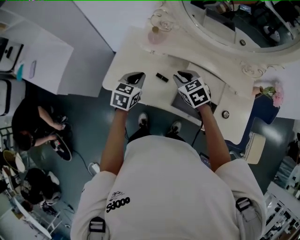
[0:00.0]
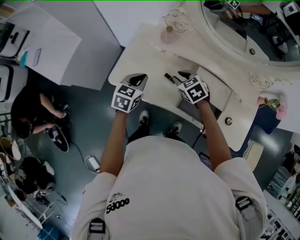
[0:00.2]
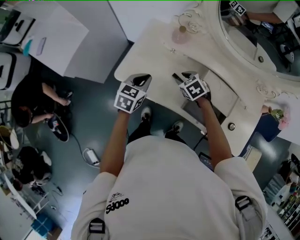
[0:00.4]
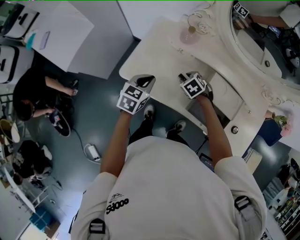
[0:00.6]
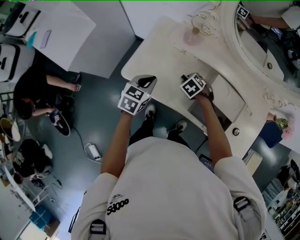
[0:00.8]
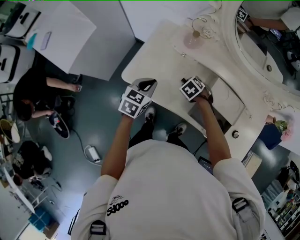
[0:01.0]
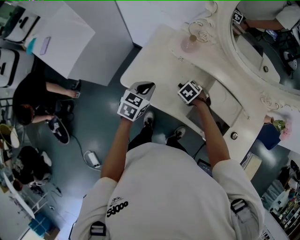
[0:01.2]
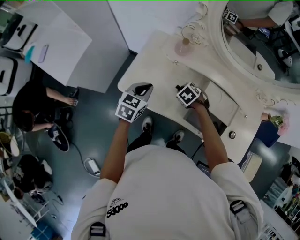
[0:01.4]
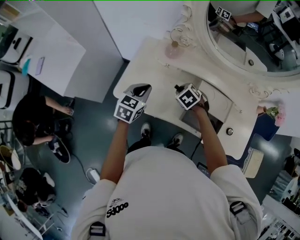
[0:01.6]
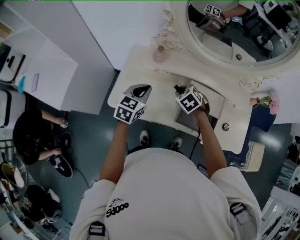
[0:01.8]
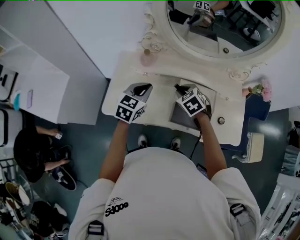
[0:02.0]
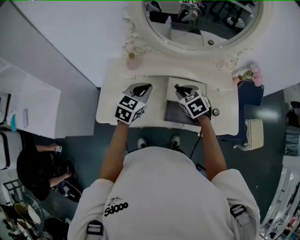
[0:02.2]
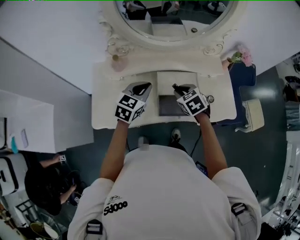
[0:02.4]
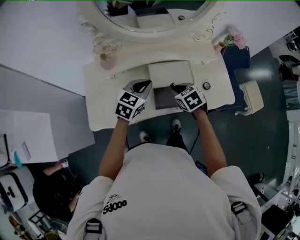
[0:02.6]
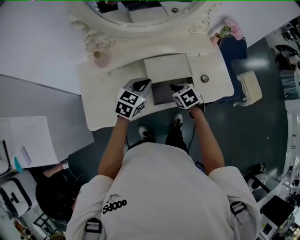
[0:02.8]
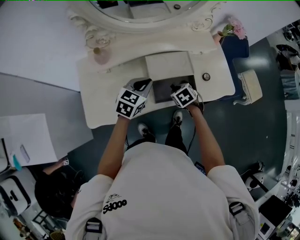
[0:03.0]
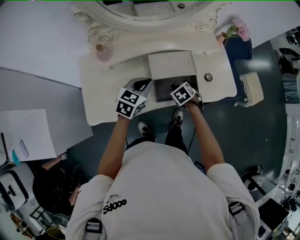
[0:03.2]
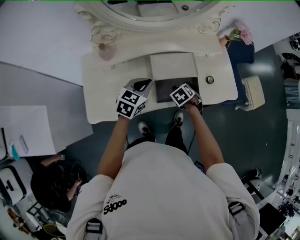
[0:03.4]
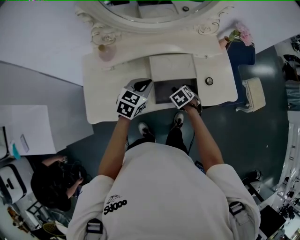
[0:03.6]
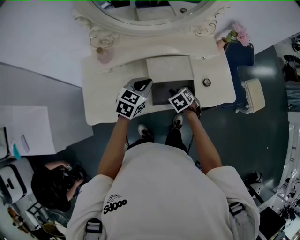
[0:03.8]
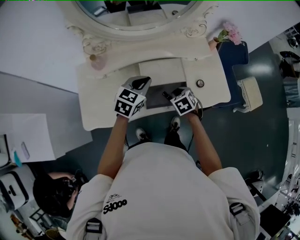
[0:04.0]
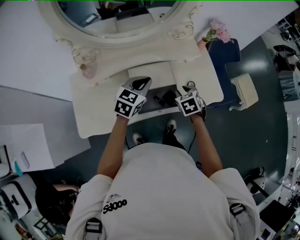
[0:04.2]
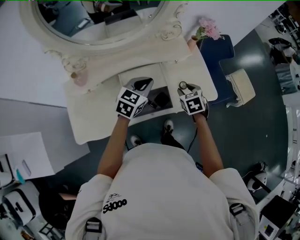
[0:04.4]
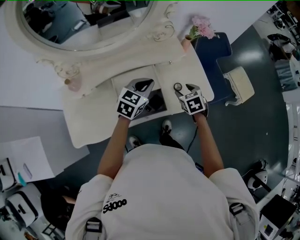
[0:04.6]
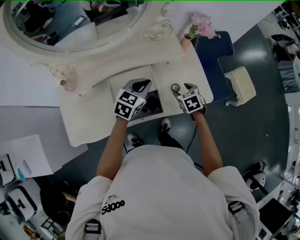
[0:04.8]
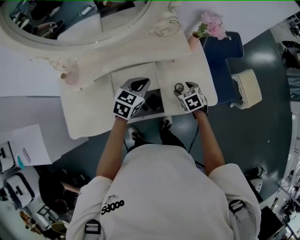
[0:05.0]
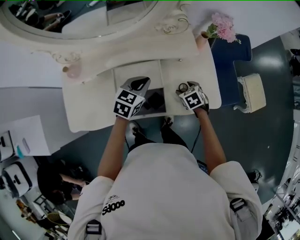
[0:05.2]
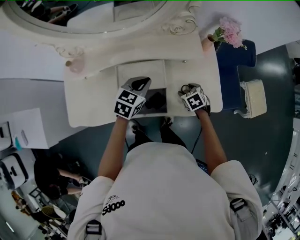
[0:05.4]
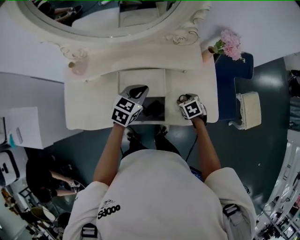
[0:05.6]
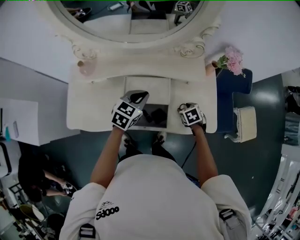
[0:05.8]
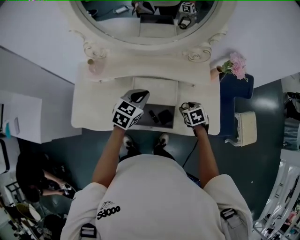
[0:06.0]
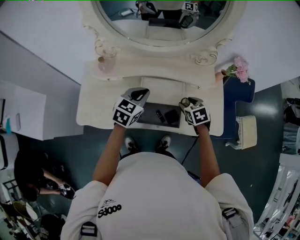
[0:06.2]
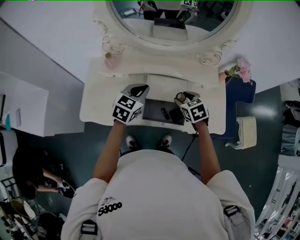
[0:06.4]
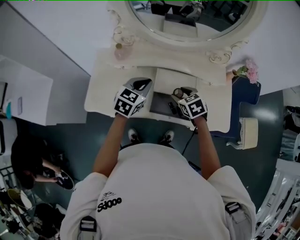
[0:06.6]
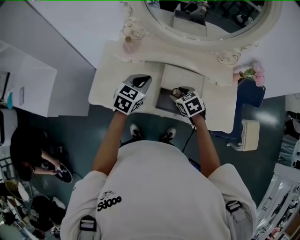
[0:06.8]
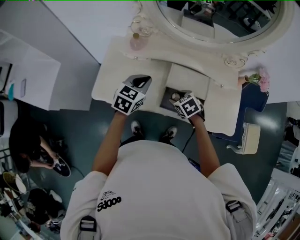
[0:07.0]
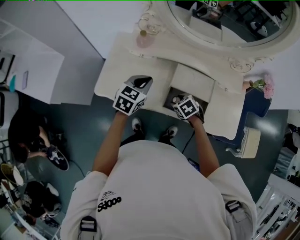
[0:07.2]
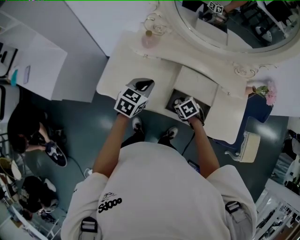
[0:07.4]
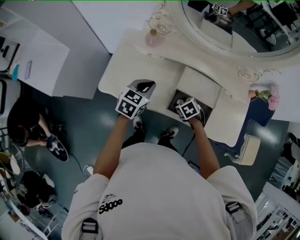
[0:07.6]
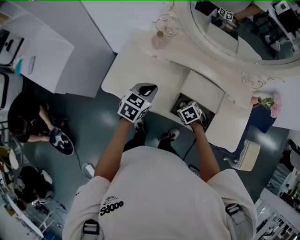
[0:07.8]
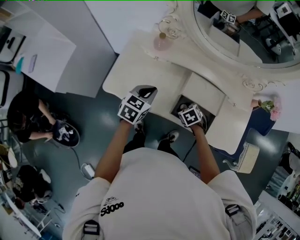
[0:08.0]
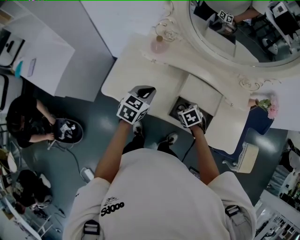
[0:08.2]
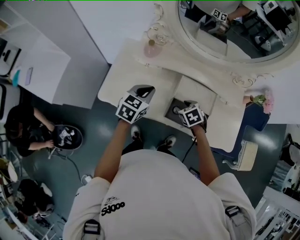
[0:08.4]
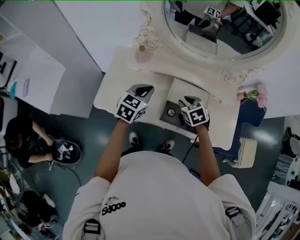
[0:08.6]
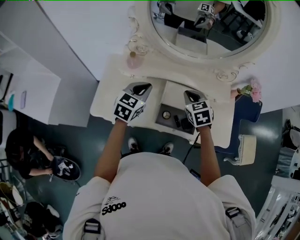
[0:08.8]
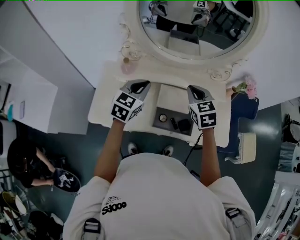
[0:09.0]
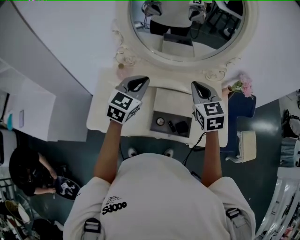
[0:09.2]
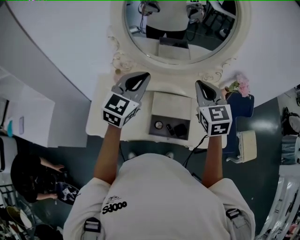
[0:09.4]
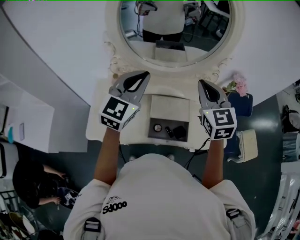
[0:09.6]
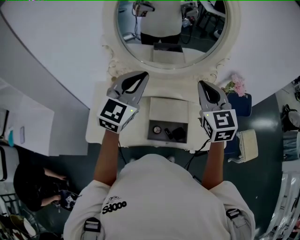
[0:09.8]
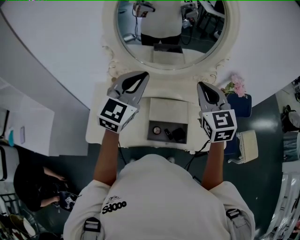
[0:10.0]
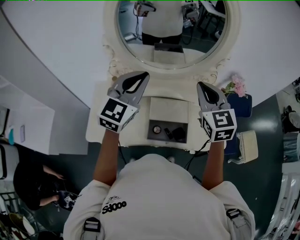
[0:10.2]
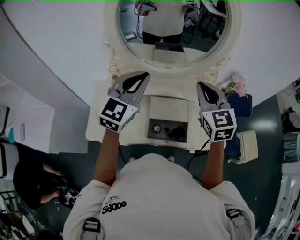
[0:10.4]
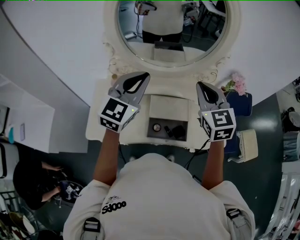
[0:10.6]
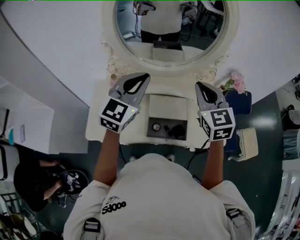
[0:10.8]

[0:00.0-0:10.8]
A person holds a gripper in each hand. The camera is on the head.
0:00.0 to 0:01.6: The right gripper heads downward, covering roughly 10 cm, and changes its angle by some 20 degrees.
0:01.6 to 0:03.0: The left gripper ends up about 20 cm from where it was, and rotates approximately 40 degrees. The right gripper goes upward and returns, approximately 10 cm each way, and rotates around the line of its fingers by about 50 degrees, clockwise from behind.
0:03.0 to 0:04.6: Both grippers move to the right and forward, roughly 20 cm. The right gripper rotates approximately 20 degrees, and opens its fingers.
0:04.6 to 0:06.2: The right gripper travels downward and back again, about 10 cm each way, and changes its angle by about 20 degrees, while the left gripper ends up approximately 15 cm from where it was, and turns by some 20 degrees.
0:06.2 to 0:07.8: The left gripper heads to the left, covering roughly 15 cm; the right gripper shifts some 25 cm to the left and downward, and changes its angle by some 30 degrees.
0:07.8 to 0:09.2: The left gripper shifts about 20 cm upward, to the right and forward, and rotates approximately 30 degrees. The right gripper shifts about 35 cm upward, tips its fingers upward by about 50 degrees, and closes its fingers.
0:09.2 to 0:10.8: The grippers both shift upward by approximately 10 cm.

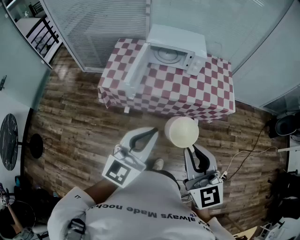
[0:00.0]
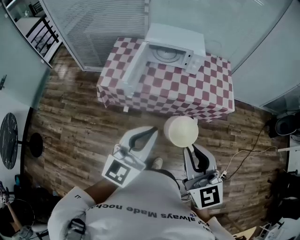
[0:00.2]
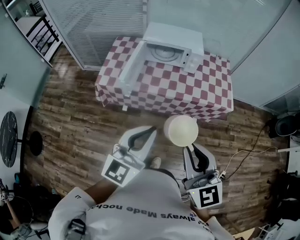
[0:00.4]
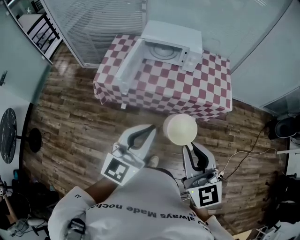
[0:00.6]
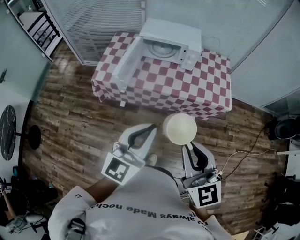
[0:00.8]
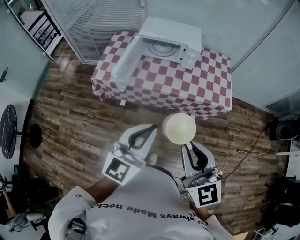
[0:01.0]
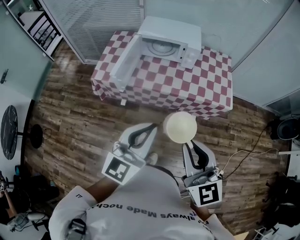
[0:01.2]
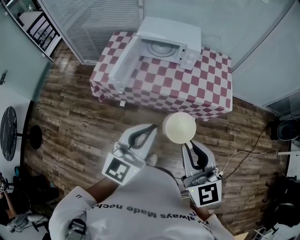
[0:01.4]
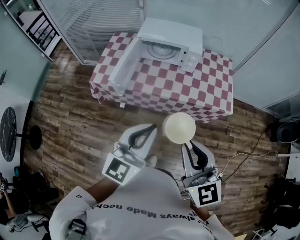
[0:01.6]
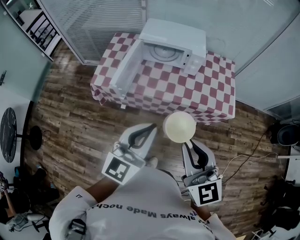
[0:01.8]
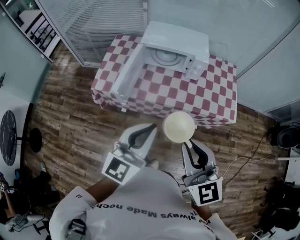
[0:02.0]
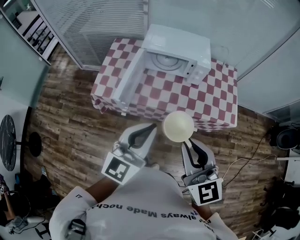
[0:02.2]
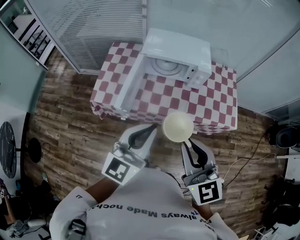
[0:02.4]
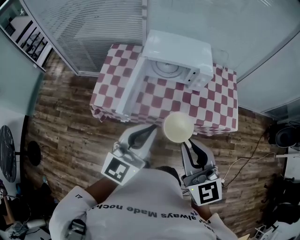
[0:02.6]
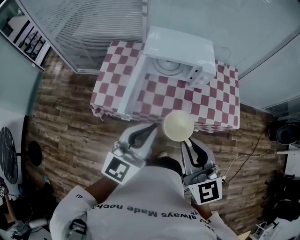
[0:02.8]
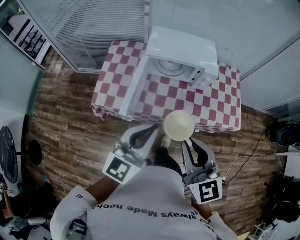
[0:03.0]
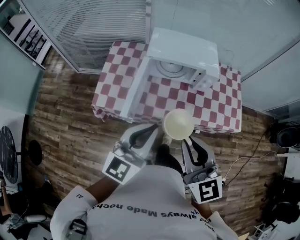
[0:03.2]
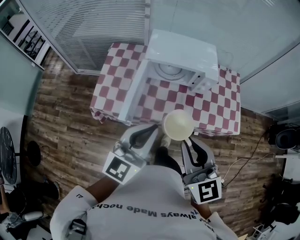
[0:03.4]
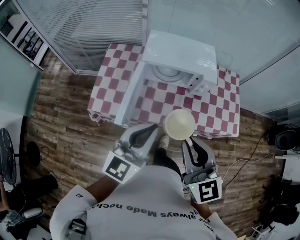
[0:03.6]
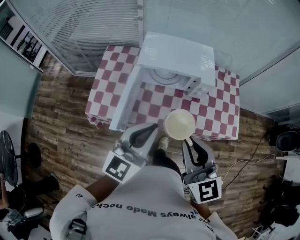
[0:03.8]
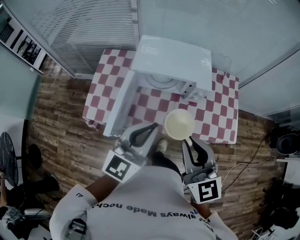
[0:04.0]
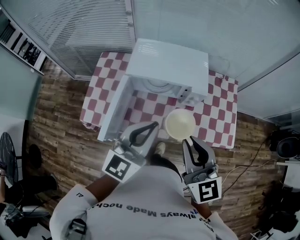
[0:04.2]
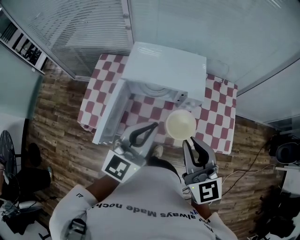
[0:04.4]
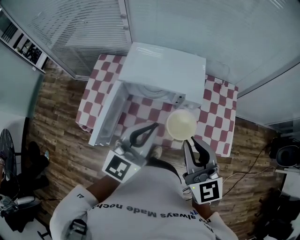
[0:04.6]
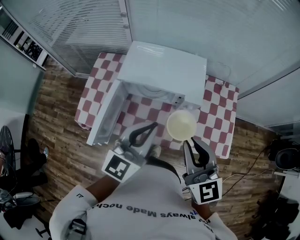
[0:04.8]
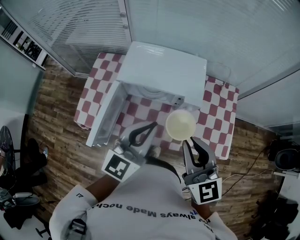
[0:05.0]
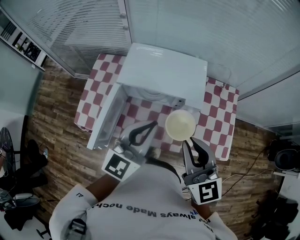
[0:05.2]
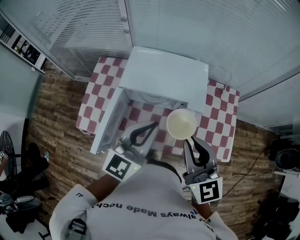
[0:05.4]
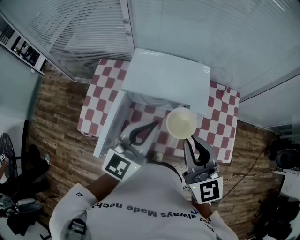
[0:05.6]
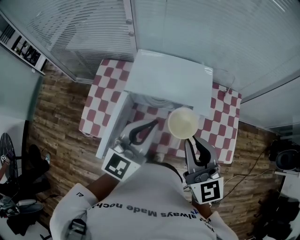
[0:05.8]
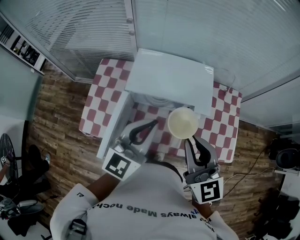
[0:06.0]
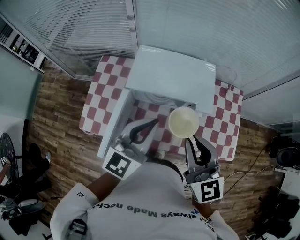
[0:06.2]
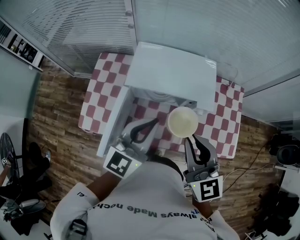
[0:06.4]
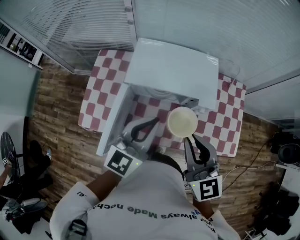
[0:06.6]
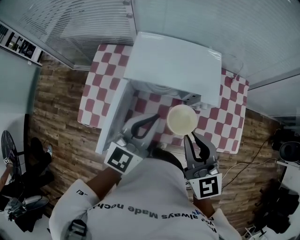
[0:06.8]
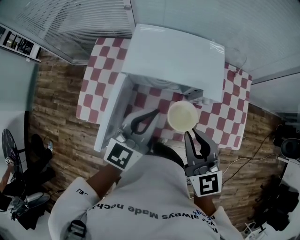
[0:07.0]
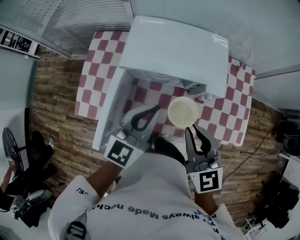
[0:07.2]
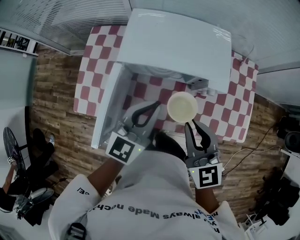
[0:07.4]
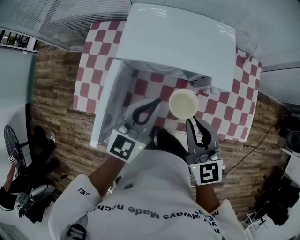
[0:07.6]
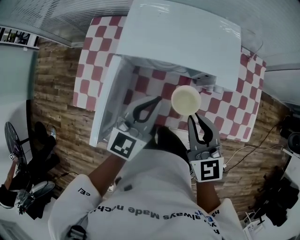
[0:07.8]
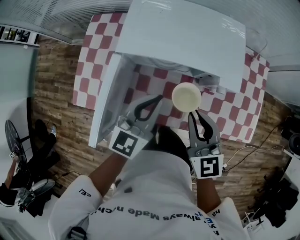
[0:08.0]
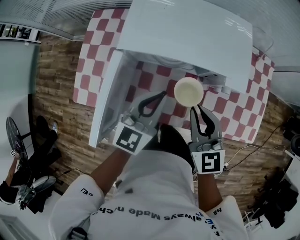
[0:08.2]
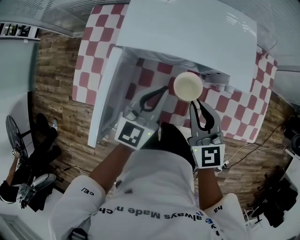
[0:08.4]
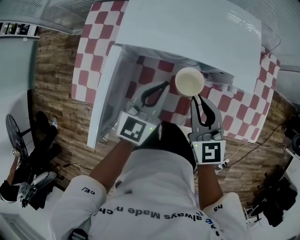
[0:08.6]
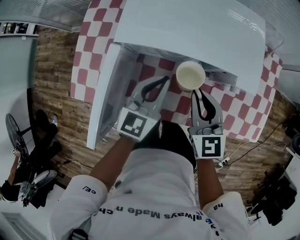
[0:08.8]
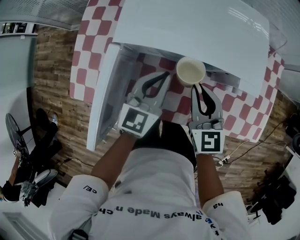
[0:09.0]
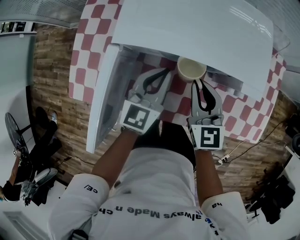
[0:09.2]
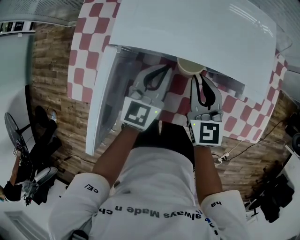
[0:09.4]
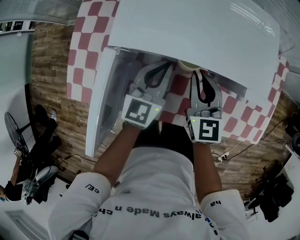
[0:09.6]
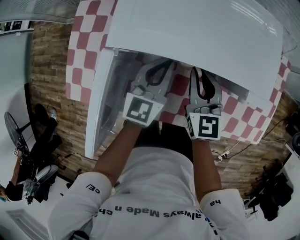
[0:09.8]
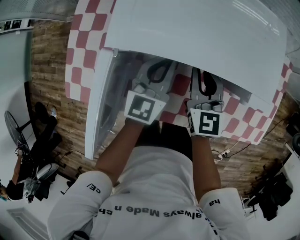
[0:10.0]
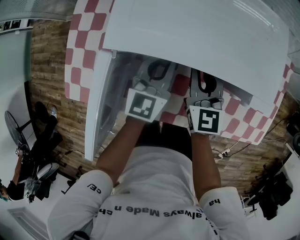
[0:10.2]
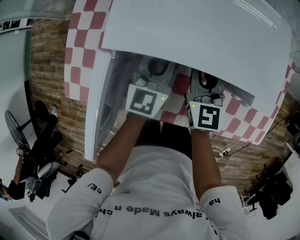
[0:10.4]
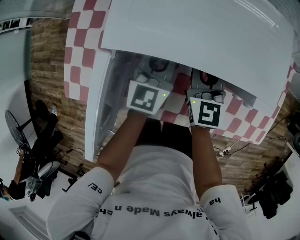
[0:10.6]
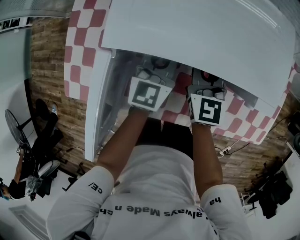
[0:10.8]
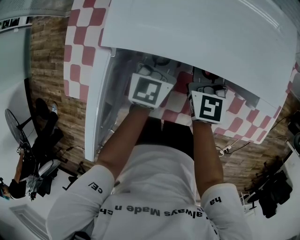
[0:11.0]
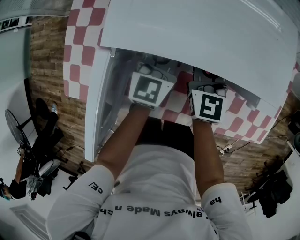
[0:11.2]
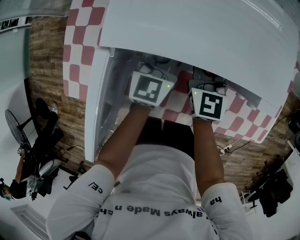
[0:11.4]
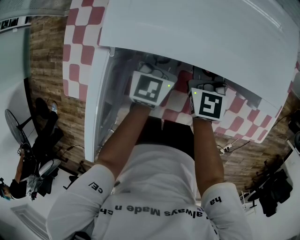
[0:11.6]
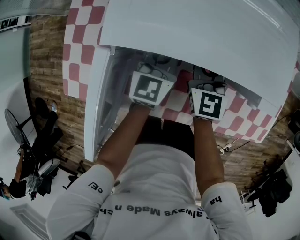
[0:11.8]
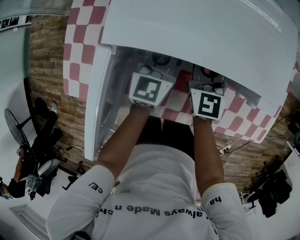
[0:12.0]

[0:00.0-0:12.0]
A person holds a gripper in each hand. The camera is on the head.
0:00.0 to 0:01.6: The two grippers go about 10 cm to the right and forward.
0:01.6 to 0:03.0: The grippers both shift forward and to the left by approximately 25 cm.
0:03.0 to 0:04.4: Both grippers move forward and to the right, about 25 cm.
0:04.4 to 0:06.0: The grippers both shift forward by approximately 10 cm.
0:06.0 to 0:07.6: The grippers both shift downward by some 15 cm.
0:07.6 to 0:09.0: Both grippers travel together downward and forward, some 15 cm.
0:09.0 to 0:10.4: Both grippers move forward and downward, some 10 cm.
0:10.4 to 0:12.0: The grippers move only a little.

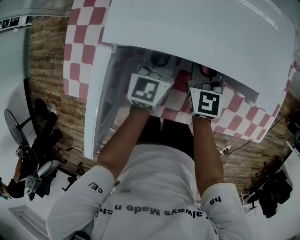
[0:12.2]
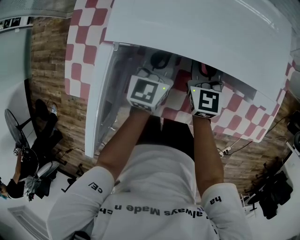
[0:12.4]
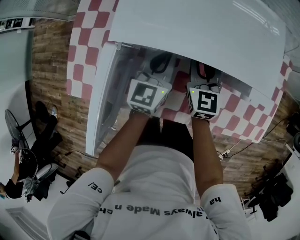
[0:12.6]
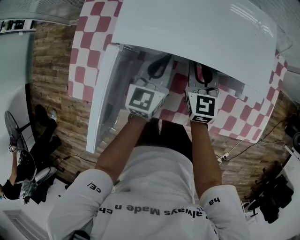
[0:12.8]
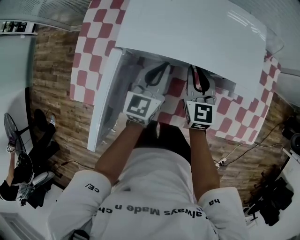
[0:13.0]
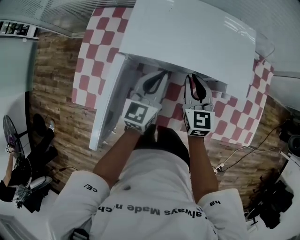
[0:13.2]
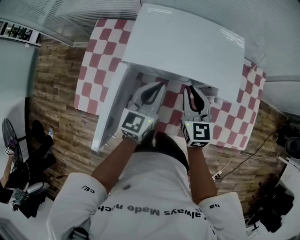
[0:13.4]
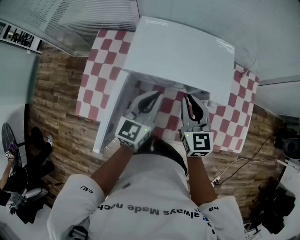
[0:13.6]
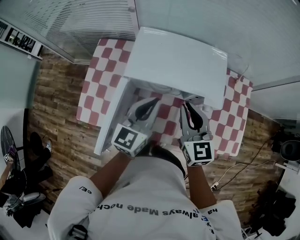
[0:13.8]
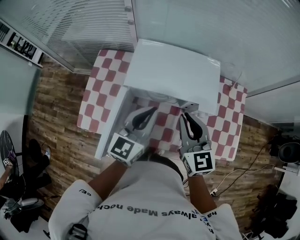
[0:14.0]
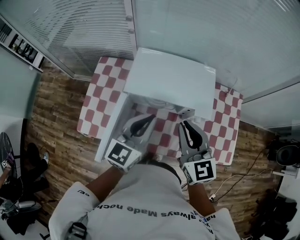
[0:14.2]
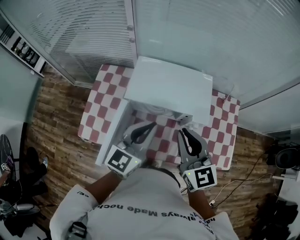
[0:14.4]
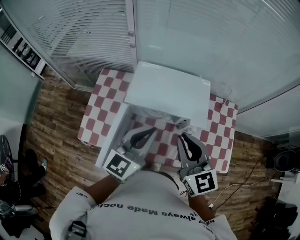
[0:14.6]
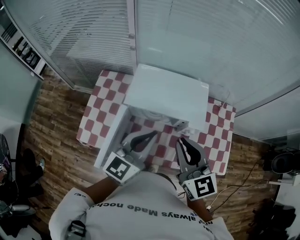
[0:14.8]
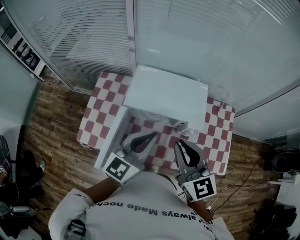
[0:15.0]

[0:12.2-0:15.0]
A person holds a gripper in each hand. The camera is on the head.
0:12.2 to 0:13.6: The grippers both shift upward and backward by approximately 25 cm.
0:13.6 to 0:15.0: Both grippers move upward and backward, about 20 cm.